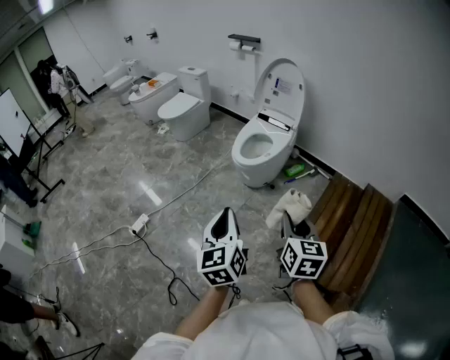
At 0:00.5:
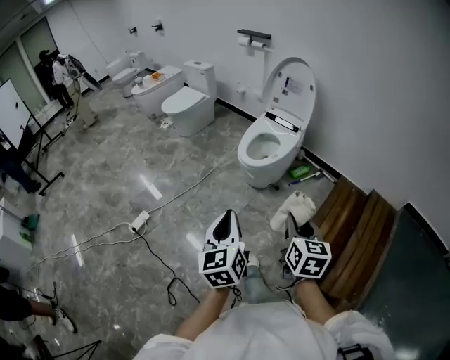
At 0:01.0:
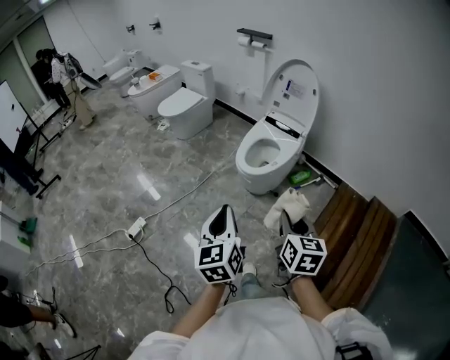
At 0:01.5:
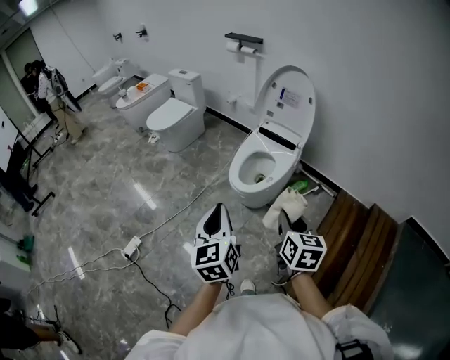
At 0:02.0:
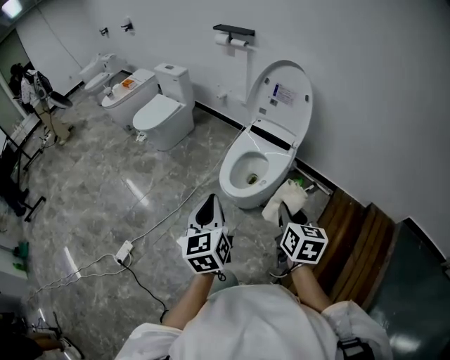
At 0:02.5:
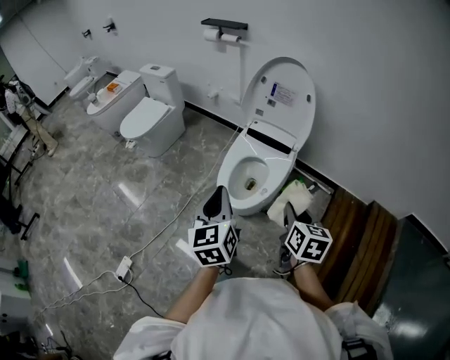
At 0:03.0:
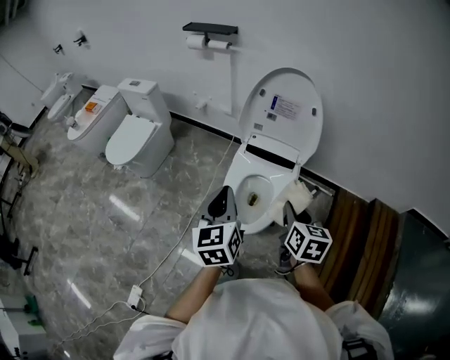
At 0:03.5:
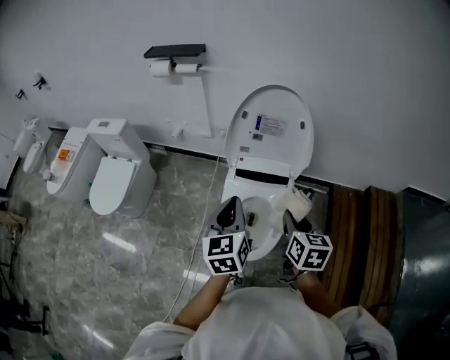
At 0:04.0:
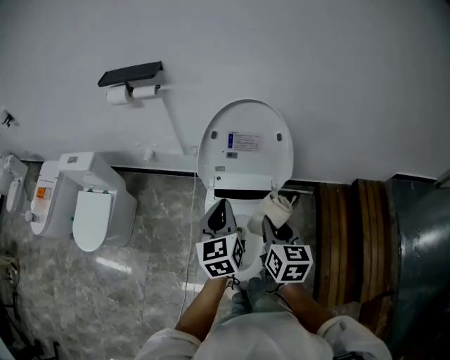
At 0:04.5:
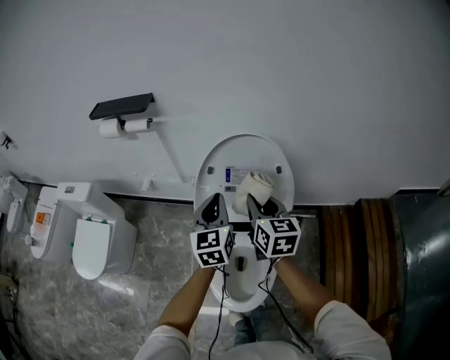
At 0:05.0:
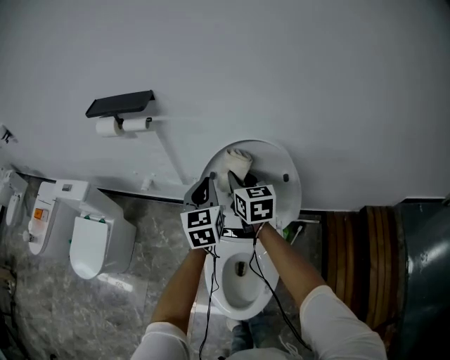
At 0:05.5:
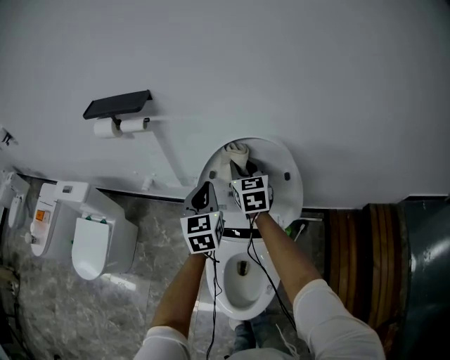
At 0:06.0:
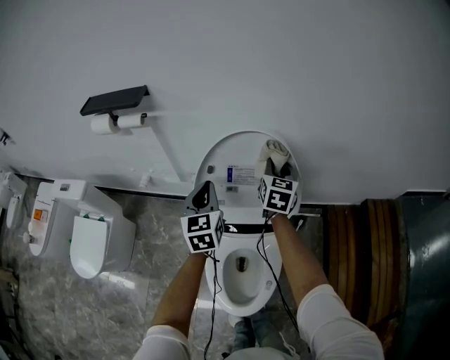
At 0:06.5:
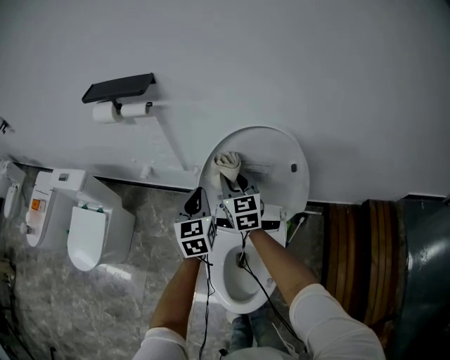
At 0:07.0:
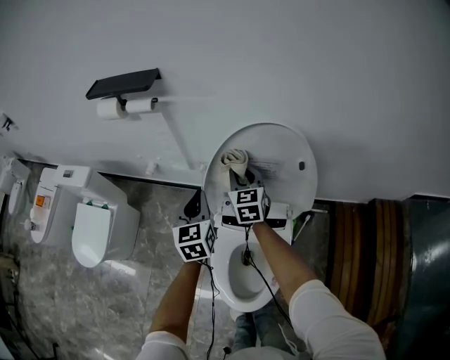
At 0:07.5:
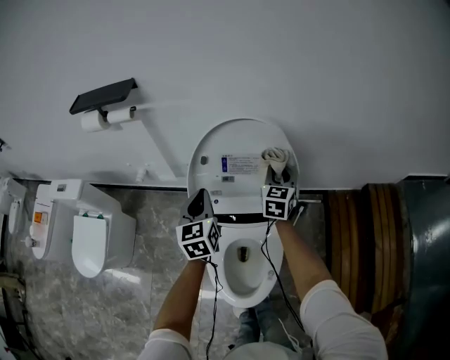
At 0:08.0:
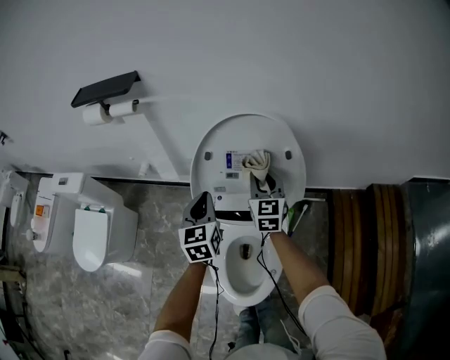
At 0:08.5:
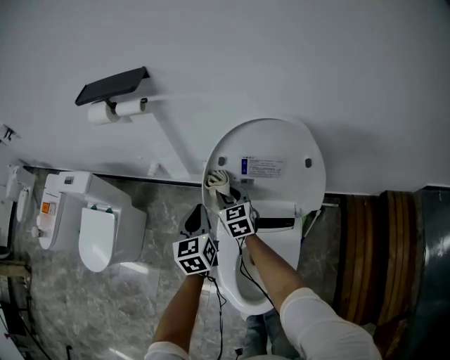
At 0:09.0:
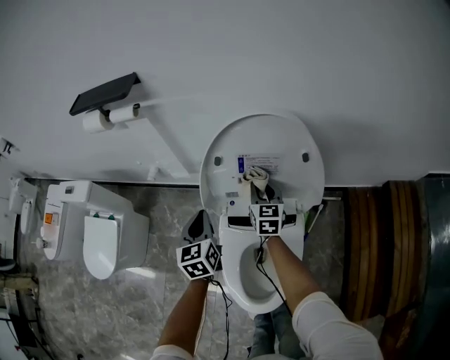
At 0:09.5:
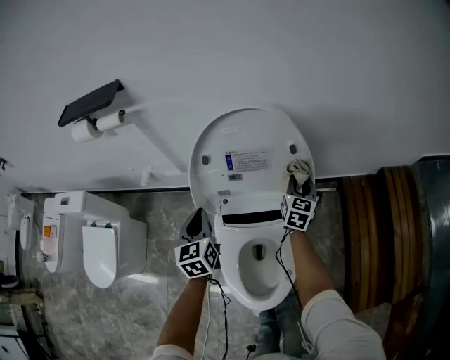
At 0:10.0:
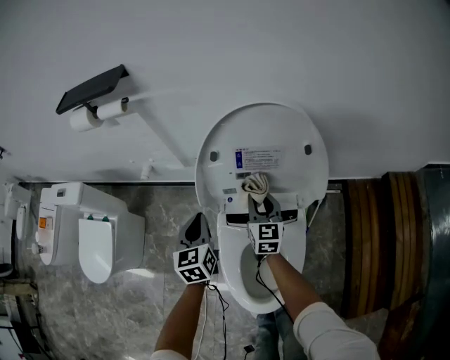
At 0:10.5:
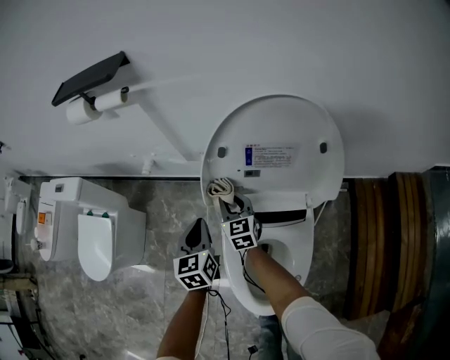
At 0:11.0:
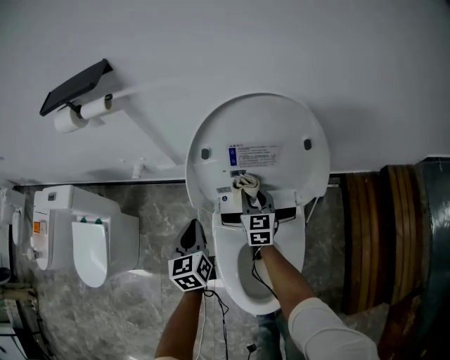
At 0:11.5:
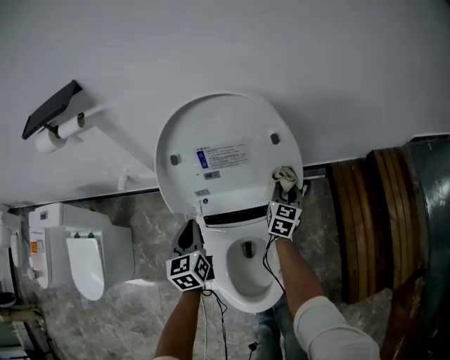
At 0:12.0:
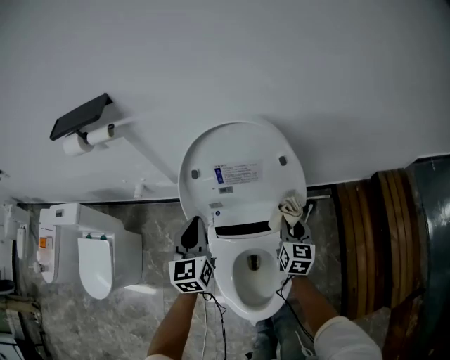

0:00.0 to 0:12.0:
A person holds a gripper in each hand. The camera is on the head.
0:00.0 to 0:02.0: The grippers both shift forward by some 35 cm.
0:02.0 to 0:04.0: The two grippers travel together, roughly 50 cm. The right gripper turns by roughly 30 degrees, while the left gripper turns by some 30 degrees.
0:04.0 to 0:06.0: The right gripper goes about 35 cm forward; the left gripper is displaced forward by roughly 20 cm.
0:06.0 to 0:08.0: The left gripper travels downward by about 5 cm, while the right gripper moves left and right over roughly 20 cm, changing direction 2 times.
0:08.0 to 0:10.0: The left gripper is displaced downward and to the left by some 10 cm. The right gripper goes left and right, approximately 30 cm each way, reversing 2 times.
0:10.0 to 0:12.0: The left gripper heads upward and to the right, covering approximately 10 cm. Meanwhile the right gripper is displaced to the right and backward by approximately 20 cm.

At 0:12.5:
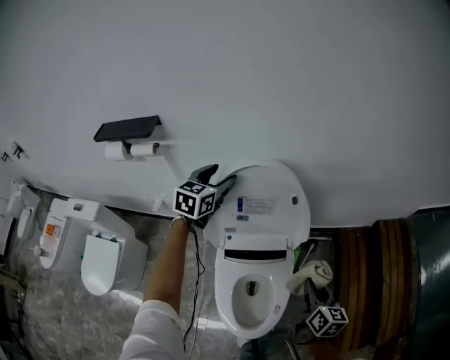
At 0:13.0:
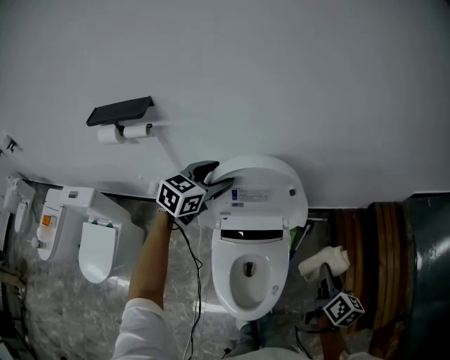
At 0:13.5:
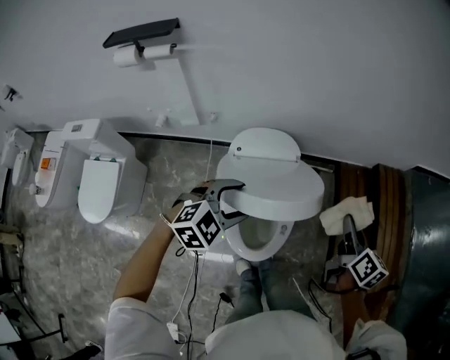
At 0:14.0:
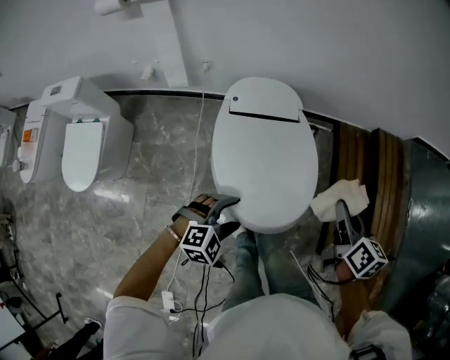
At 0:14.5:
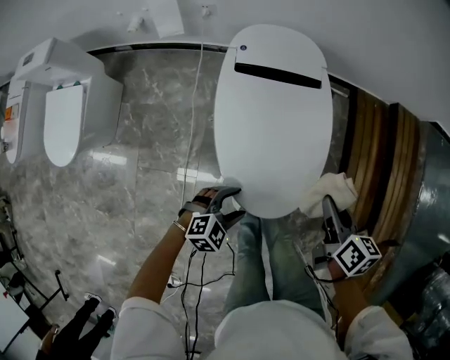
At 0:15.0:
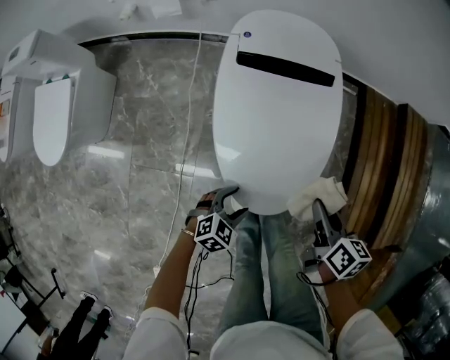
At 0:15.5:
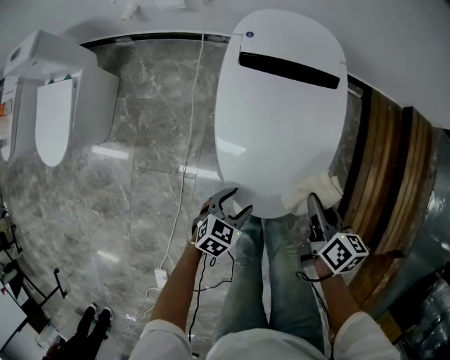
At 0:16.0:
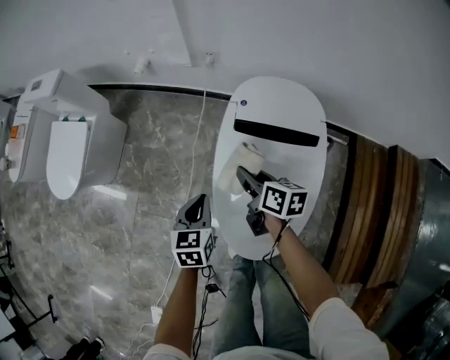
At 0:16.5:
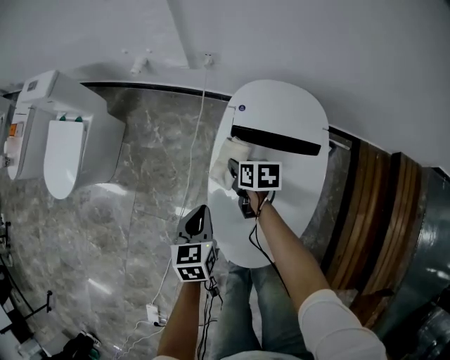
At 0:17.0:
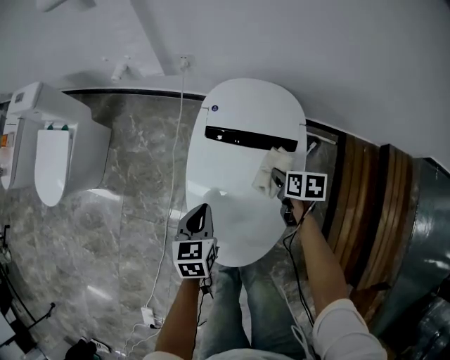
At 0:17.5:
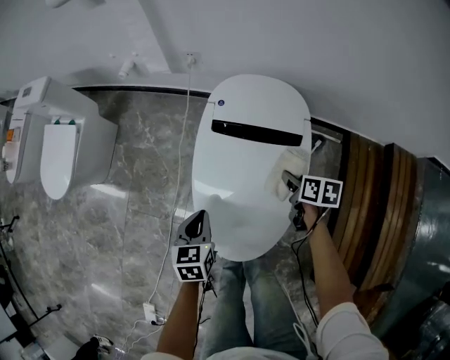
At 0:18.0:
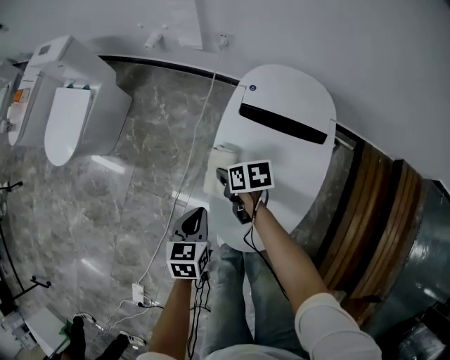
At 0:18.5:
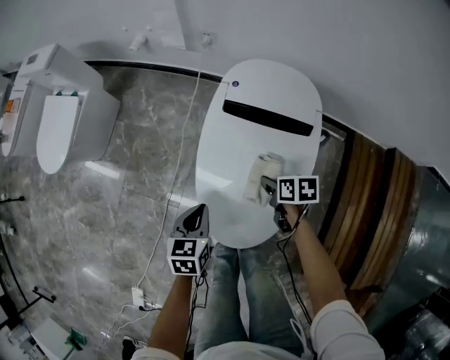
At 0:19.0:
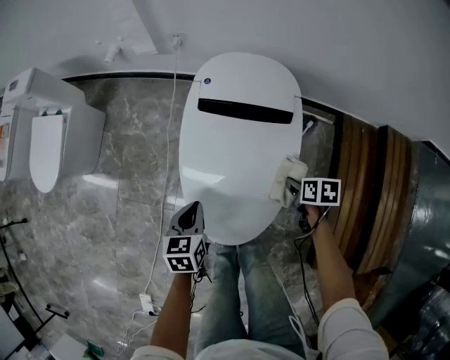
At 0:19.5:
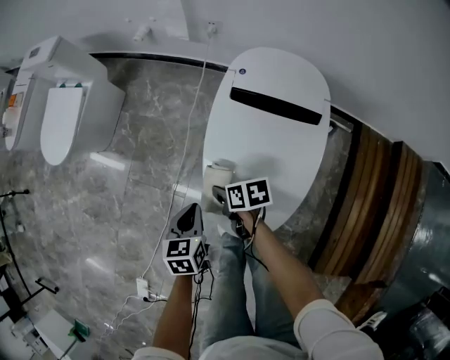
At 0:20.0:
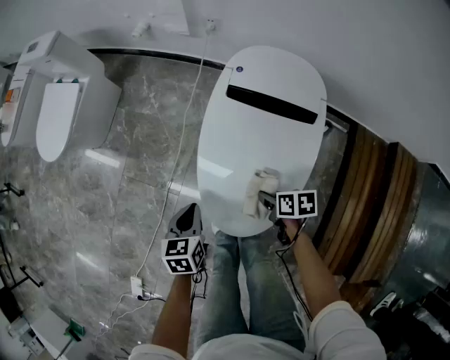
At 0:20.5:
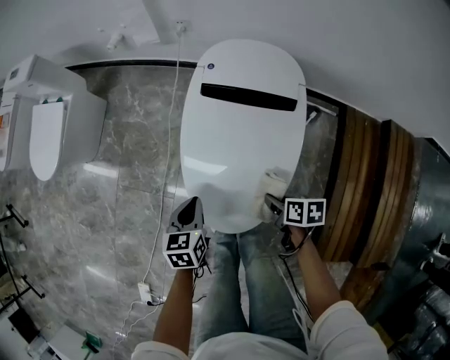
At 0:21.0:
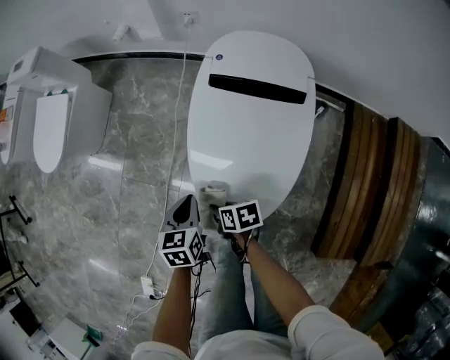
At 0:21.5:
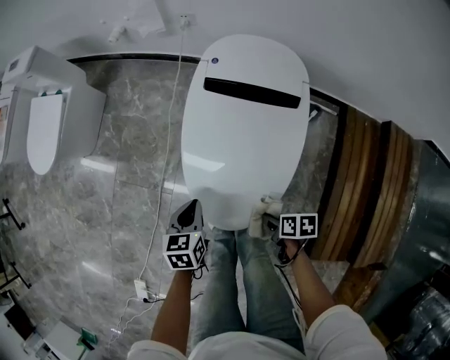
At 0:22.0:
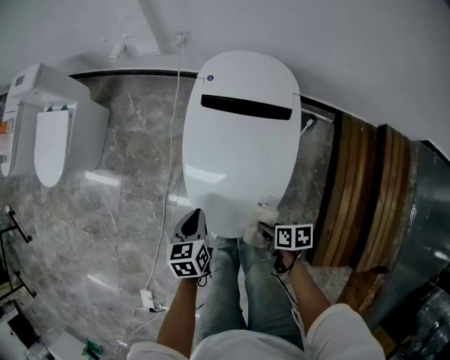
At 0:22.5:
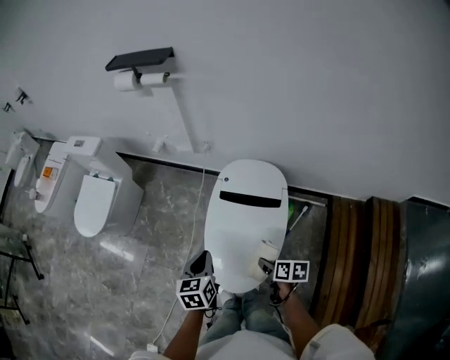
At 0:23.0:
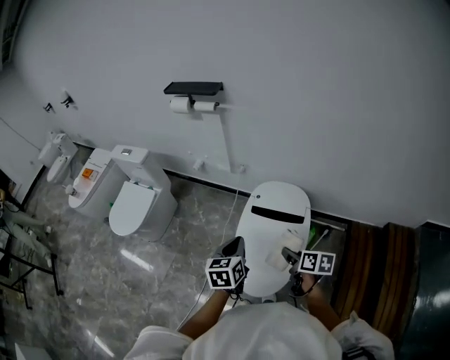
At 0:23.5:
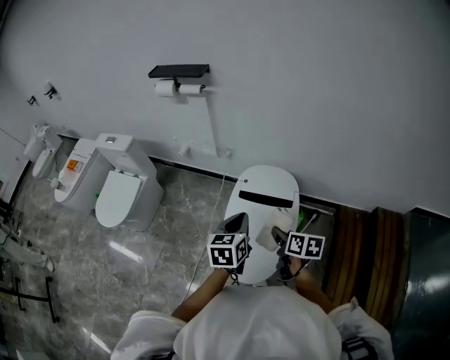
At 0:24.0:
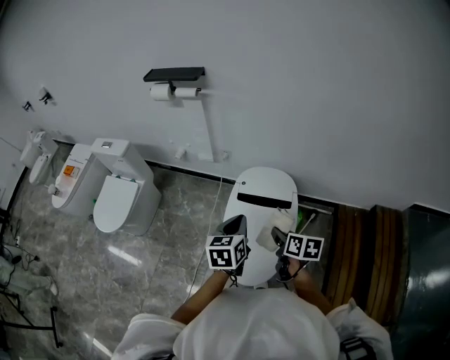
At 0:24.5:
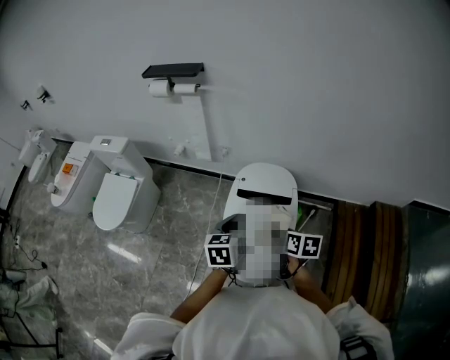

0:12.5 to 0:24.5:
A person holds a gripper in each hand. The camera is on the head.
0:12.5 to 0:14.5: The left gripper moves backward, downward and to the right, roughly 70 cm, and changes its angle by about 40 degrees. The right gripper shifts some 20 cm backward and downward, and rotates some 20 degrees.
0:14.5 to 0:16.5: The left gripper reaches roughly 10 cm downward, then returns, rotates some 80 degrees, and closes up; the right gripper changes place by approximately 40 cm, and rotates about 30 degrees.
0:16.5 to 0:18.5: The right gripper moves left and right over some 25 cm, changing direction 2 times. Meanwhile the left gripper travels backward by approximately 10 cm, and reaches roughly 5 cm to the right, then returns.
0:18.5 to 0:20.5: The left gripper reaches roughly 5 cm to the left, then returns, while the right gripper goes left and right, some 30 cm each way, reversing 2 times.
0:20.5 to 0:22.5: The grippers both shift upward by approximately 20 cm. The right gripper reaches some 20 cm to the left, then returns.
0:22.5 to 0:24.5: The right gripper moves upward and forward, roughly 15 cm. The left gripper heads upward and to the right, covering roughly 15 cm.

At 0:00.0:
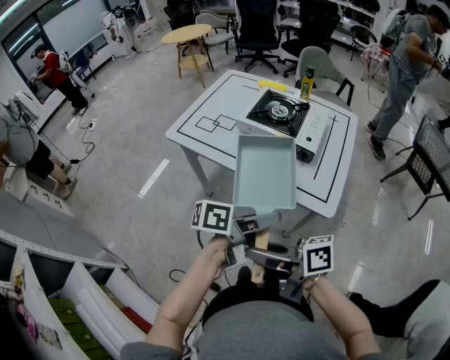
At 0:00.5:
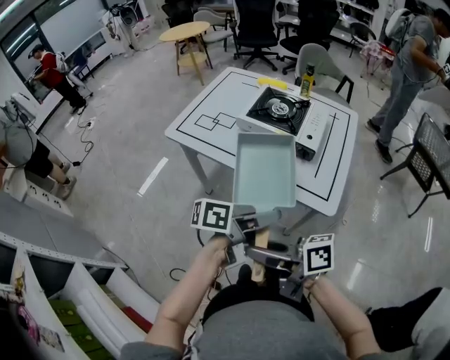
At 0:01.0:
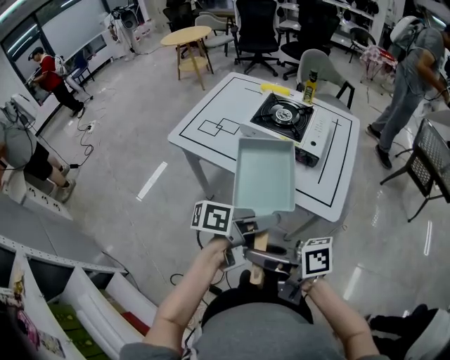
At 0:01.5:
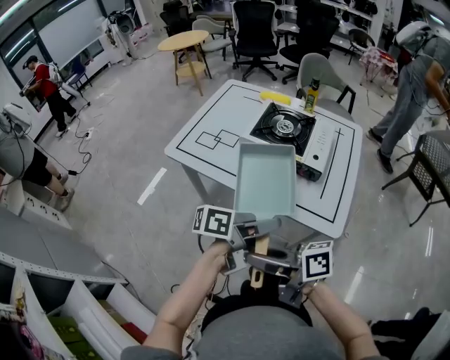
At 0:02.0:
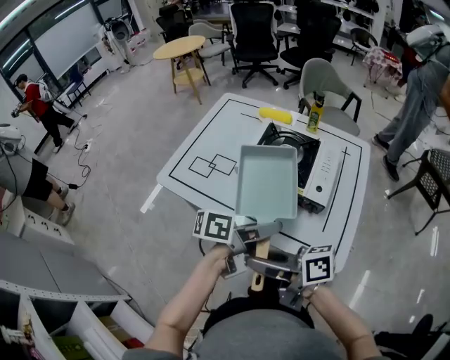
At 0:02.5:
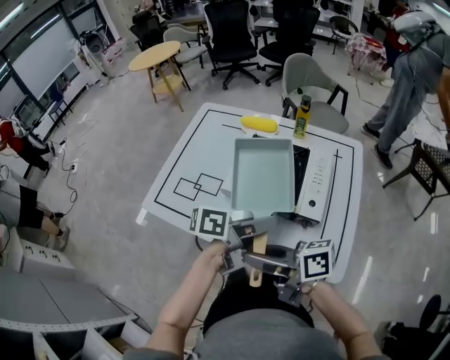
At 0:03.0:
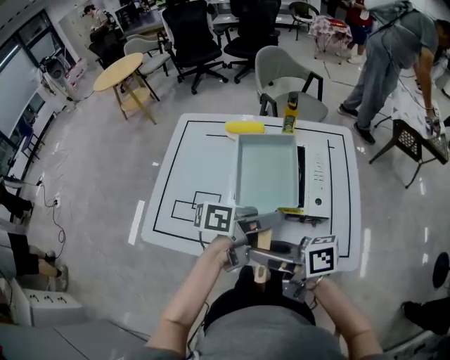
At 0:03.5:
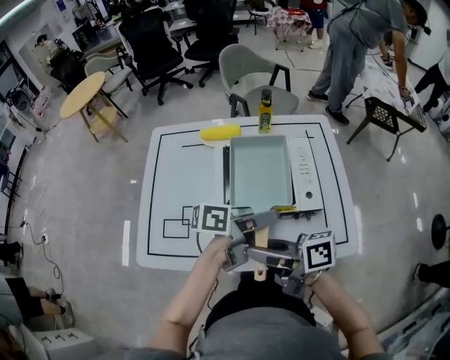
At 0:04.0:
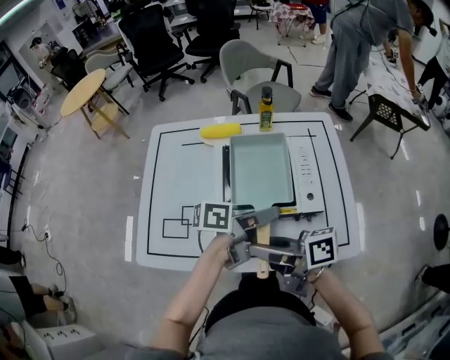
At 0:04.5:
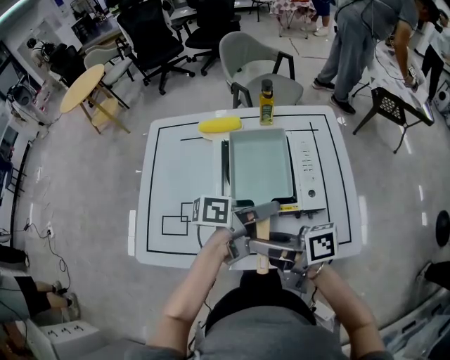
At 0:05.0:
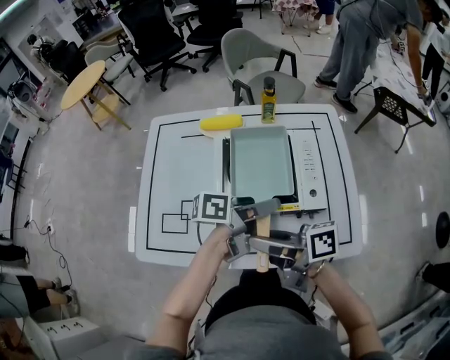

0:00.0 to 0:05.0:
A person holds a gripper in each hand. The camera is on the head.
0:00.0 to 0:02.5: The left gripper changes place by some 25 cm; the right gripper moves about 25 cm.
0:02.5 to 0:05.0: The left gripper ends up roughly 10 cm from where it was, and turns by roughly 20 degrees, while the right gripper moves approximately 10 cm, and swivels about 20 degrees.
